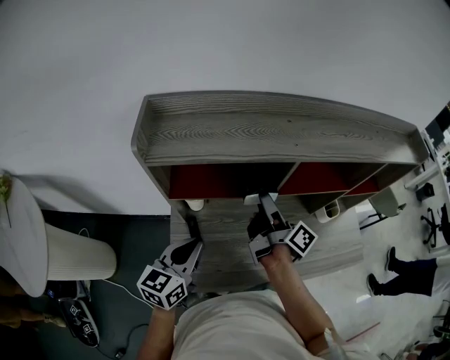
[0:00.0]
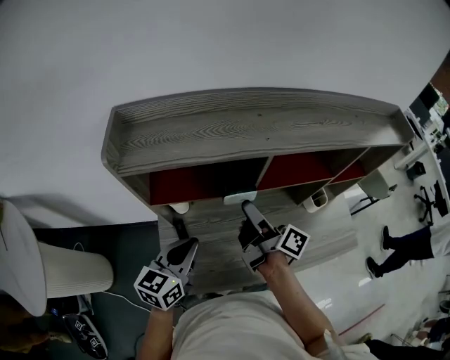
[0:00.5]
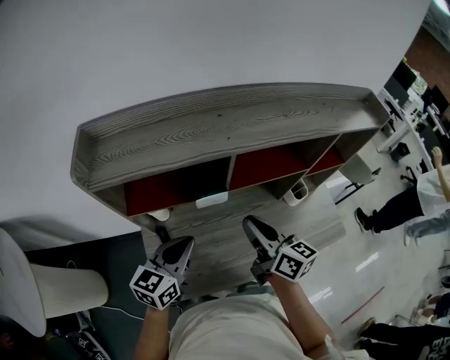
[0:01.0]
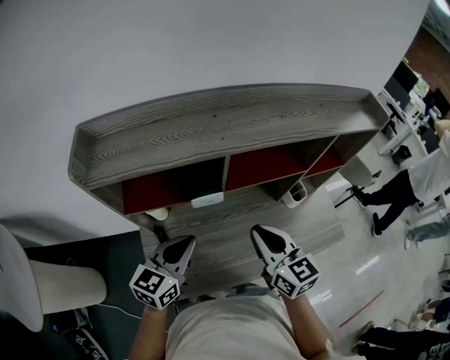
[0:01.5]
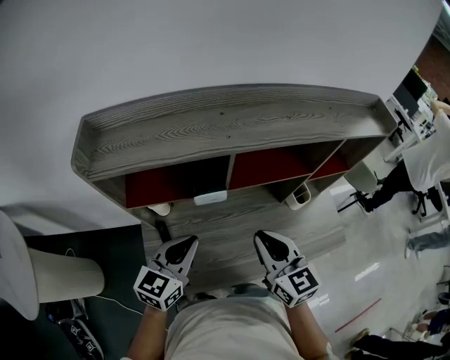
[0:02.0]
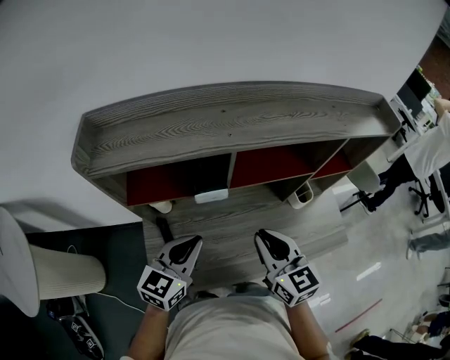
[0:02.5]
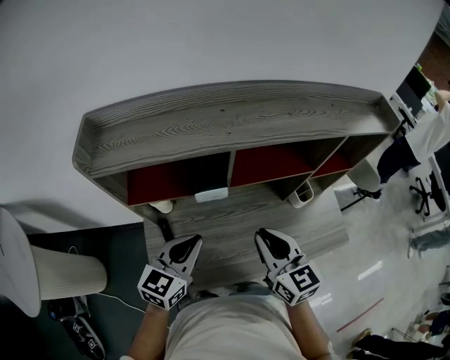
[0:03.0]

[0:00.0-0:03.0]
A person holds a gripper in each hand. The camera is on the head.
0:00.0 to 0:01.5: The left gripper goes about 10 cm to the right; the right gripper goes some 15 cm backward and to the right, twists roughly 70 degrees counterclockwise, seen from behind, and closes.
0:01.5 to 0:03.0: The grippers stay close to where they were, moving slightly.

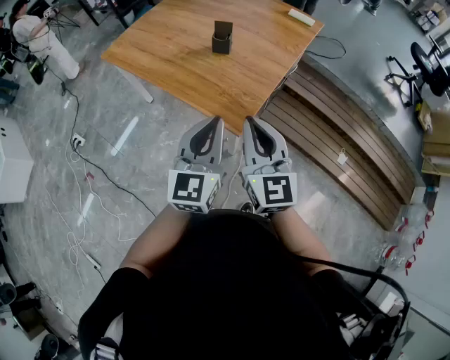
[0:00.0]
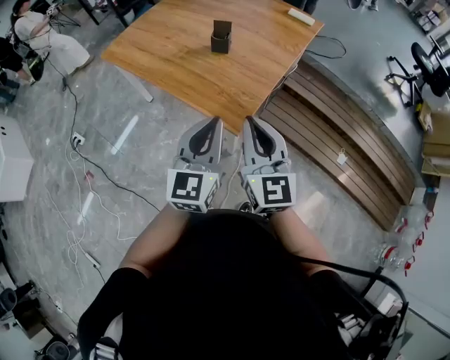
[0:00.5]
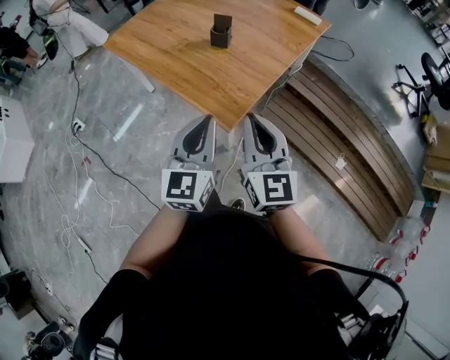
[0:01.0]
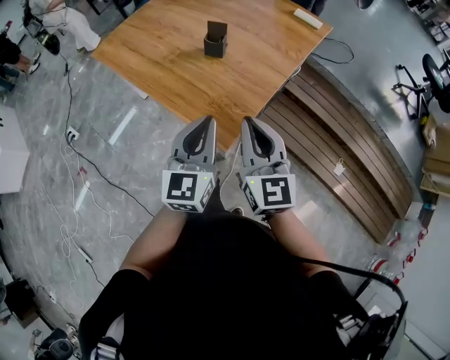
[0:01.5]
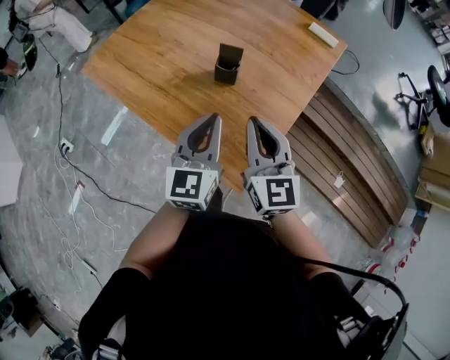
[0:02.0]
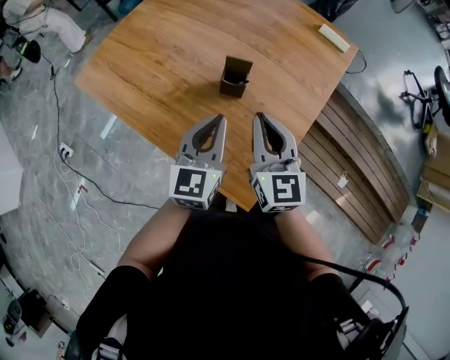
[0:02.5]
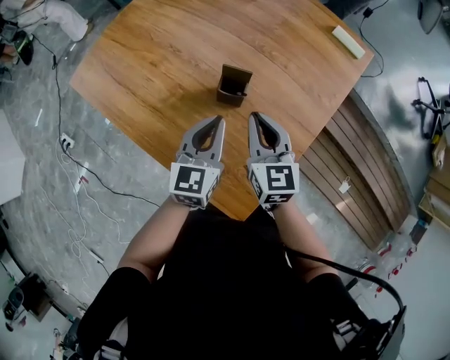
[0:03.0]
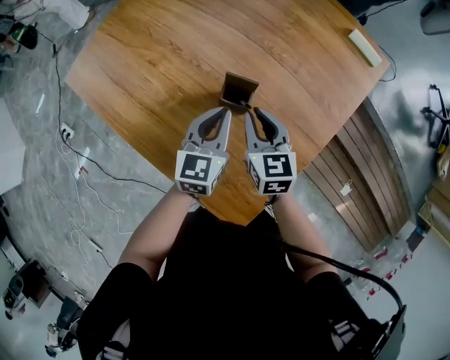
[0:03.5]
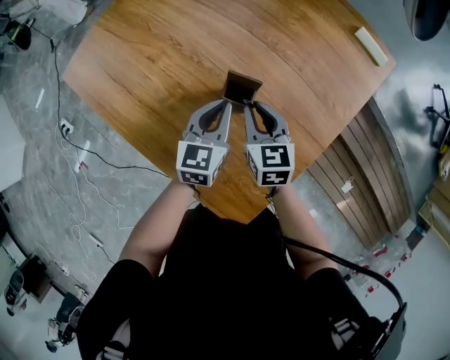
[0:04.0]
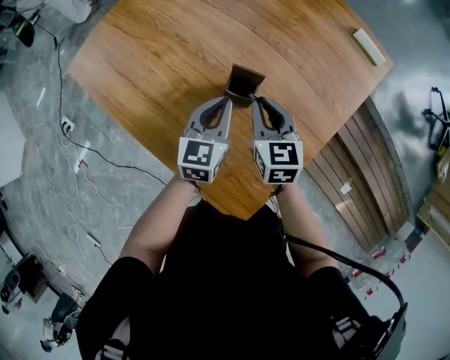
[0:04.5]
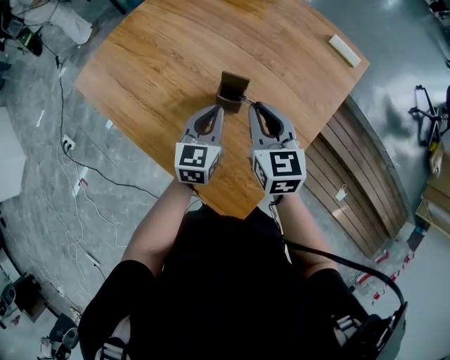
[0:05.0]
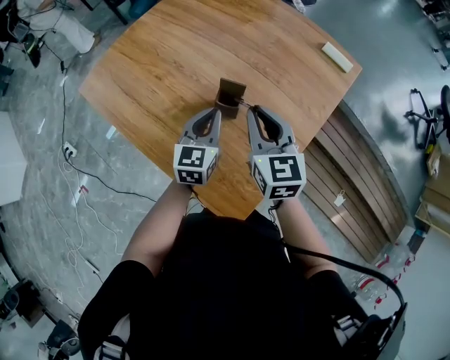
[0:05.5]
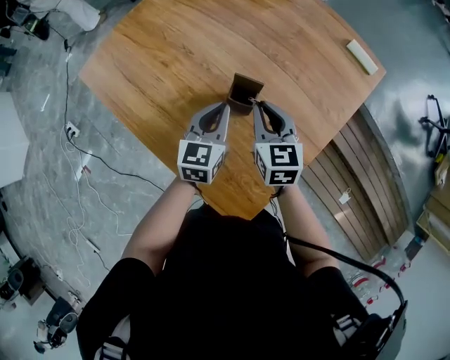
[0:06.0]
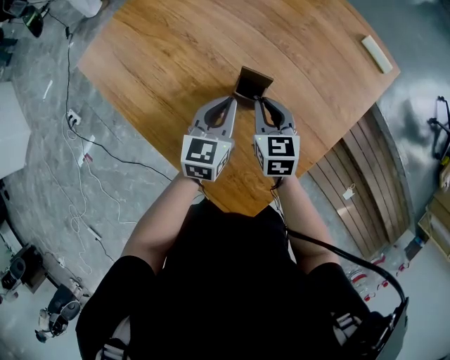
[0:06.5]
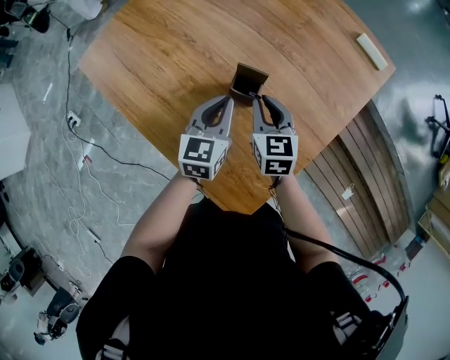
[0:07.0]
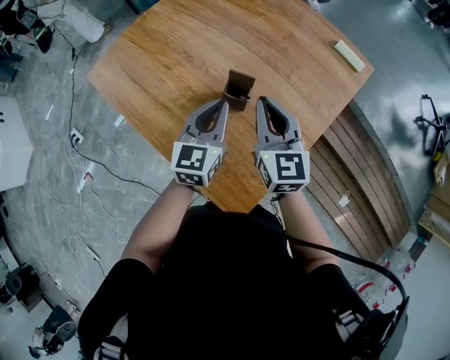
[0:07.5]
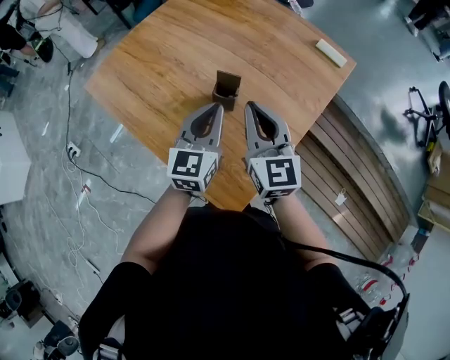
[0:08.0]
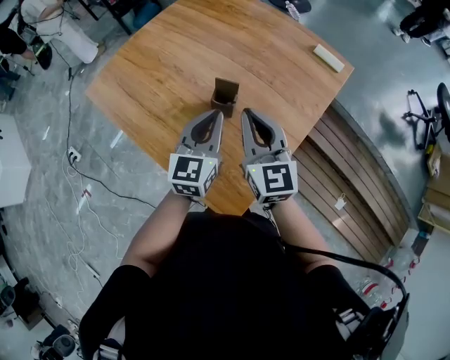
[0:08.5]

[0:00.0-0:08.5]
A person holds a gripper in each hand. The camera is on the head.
0:00.0 to 0:02.0: Both grippers travel together forward, about 30 cm.
0:02.0 to 0:04.0: The grippers both shift forward and downward by about 35 cm. The right gripper rotates approximately 30 degrees.
0:04.0 to 0:06.5: The right gripper goes upward and returns, about 20 cm each way, while the left gripper goes upward and returns, about 10 cm each way.
0:06.5 to 0:08.5: The two grippers go roughly 20 cm upward and backward. The right gripper swivels about 30 degrees.

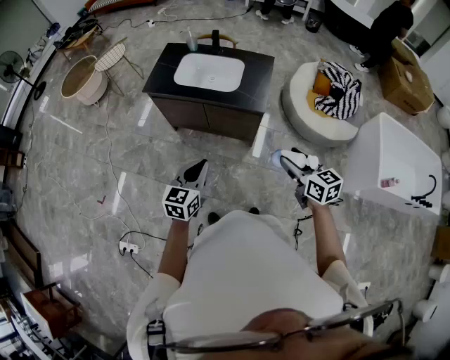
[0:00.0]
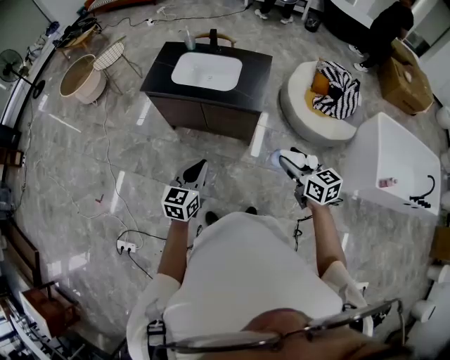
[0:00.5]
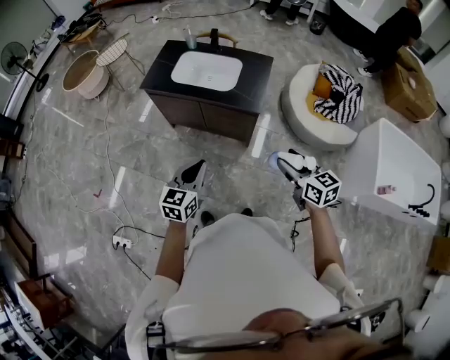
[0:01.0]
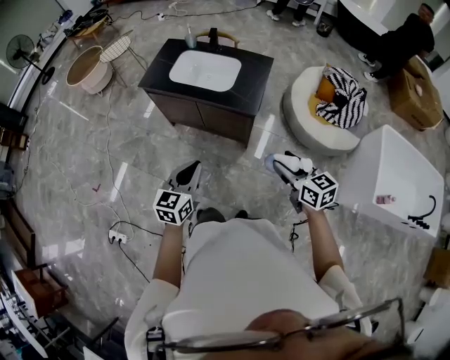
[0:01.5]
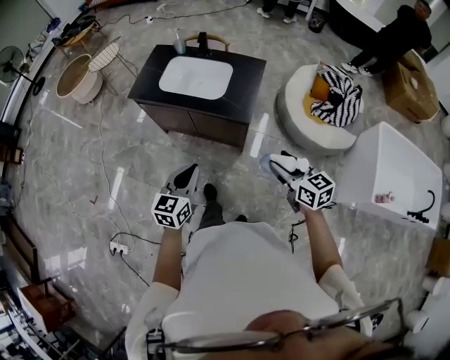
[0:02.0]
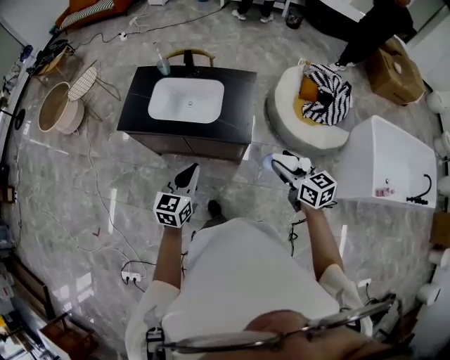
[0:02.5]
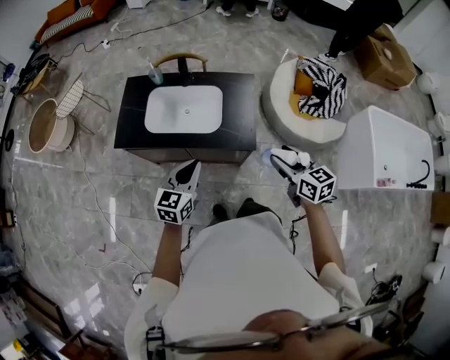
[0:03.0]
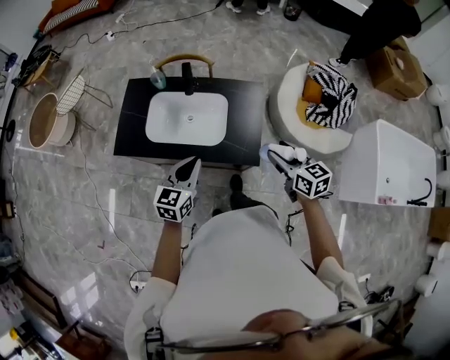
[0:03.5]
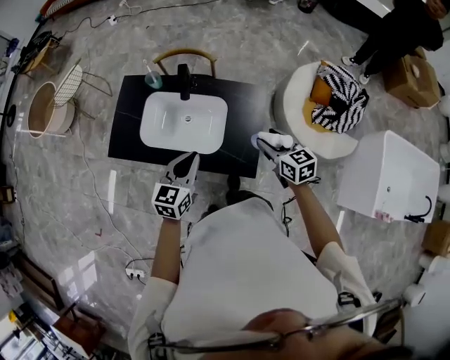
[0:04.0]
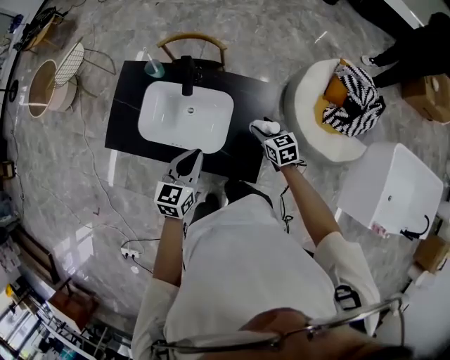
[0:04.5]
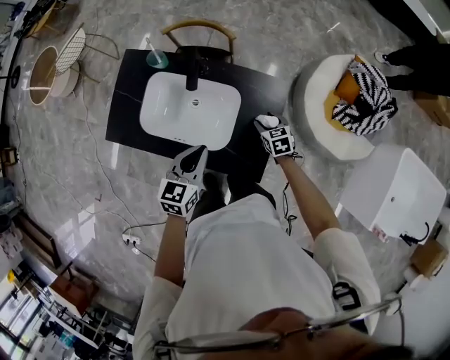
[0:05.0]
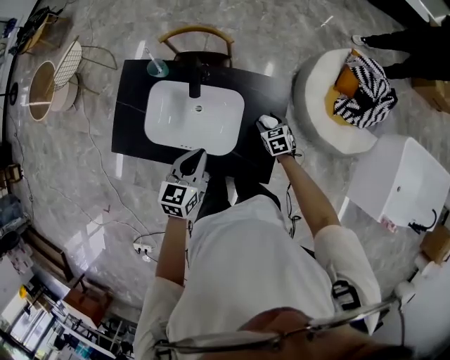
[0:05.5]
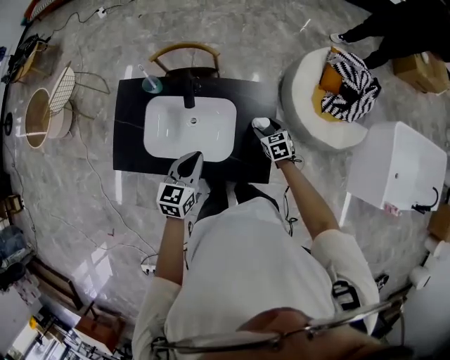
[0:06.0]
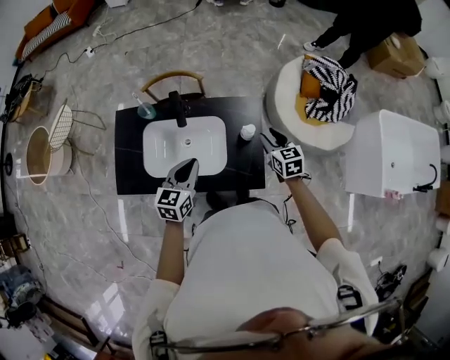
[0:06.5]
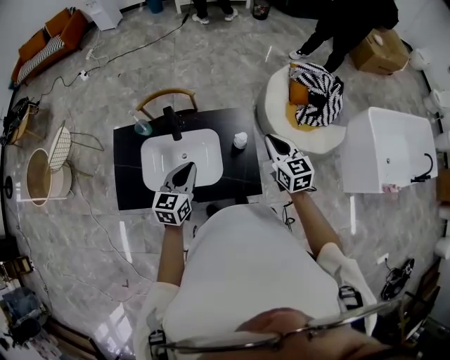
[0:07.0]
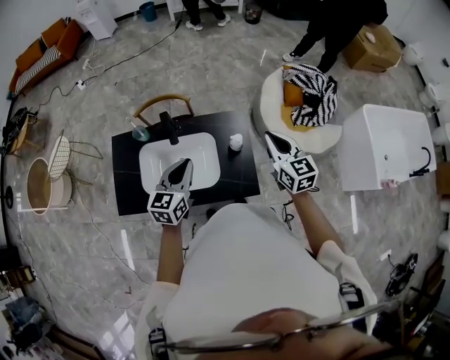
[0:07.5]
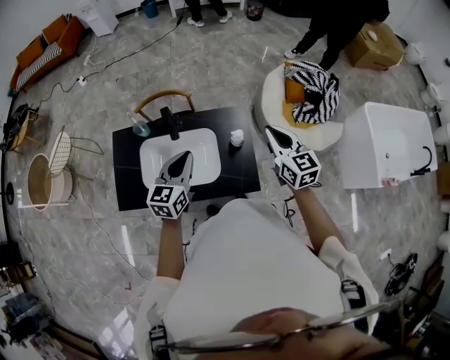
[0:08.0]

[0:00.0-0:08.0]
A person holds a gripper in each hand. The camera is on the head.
0:00.0 to 0:02.0: The right gripper heads forward and to the right, covering about 10 cm, while the left gripper shifts roughly 10 cm to the right and forward.
0:02.0 to 0:04.0: Both grippers are carried forward, about 40 cm.
0:04.0 to 0:06.0: The right gripper travels downward and forward by approximately 25 cm, and turns by some 20 degrees; the left gripper heads forward and downward, covering roughly 10 cm.
0:06.0 to 0:08.0: The right gripper moves upward, approximately 35 cm, tilts its fingers roughly 40 degrees upward, and closes up; the left gripper goes some 10 cm upward.

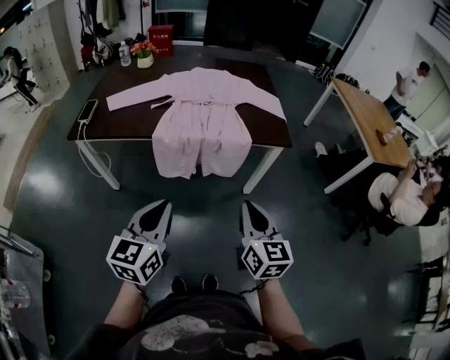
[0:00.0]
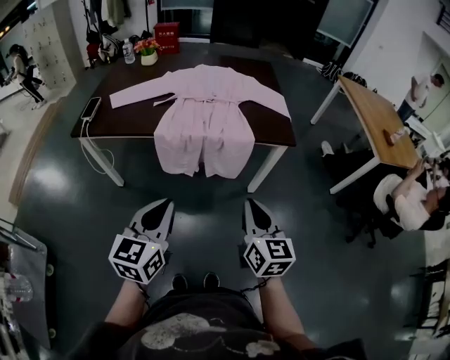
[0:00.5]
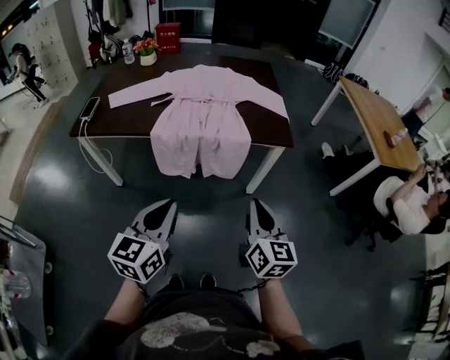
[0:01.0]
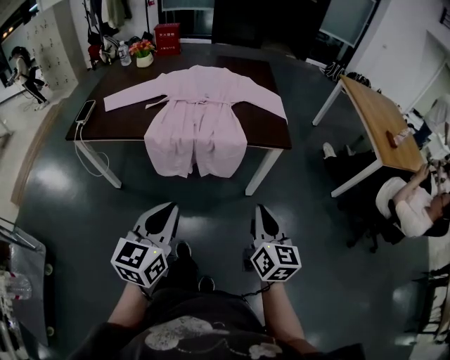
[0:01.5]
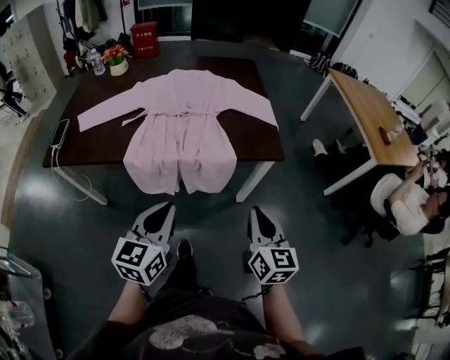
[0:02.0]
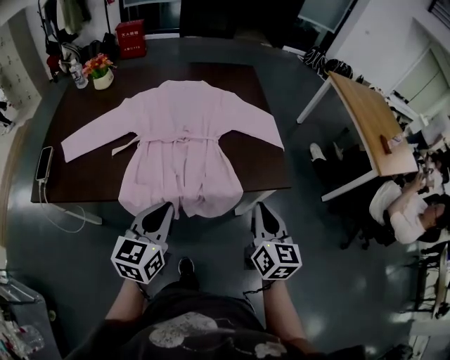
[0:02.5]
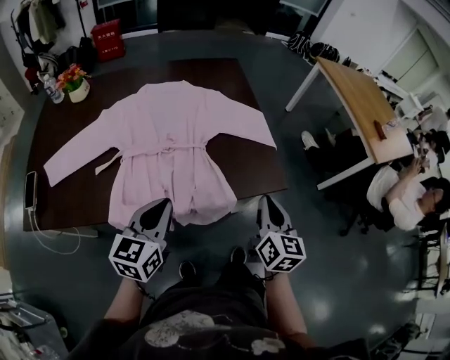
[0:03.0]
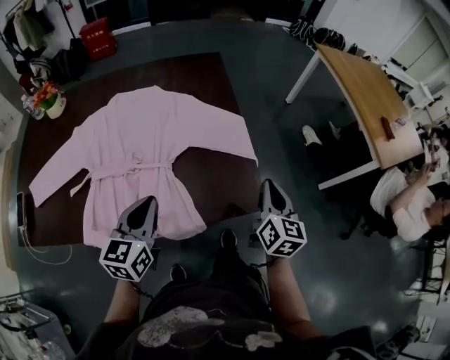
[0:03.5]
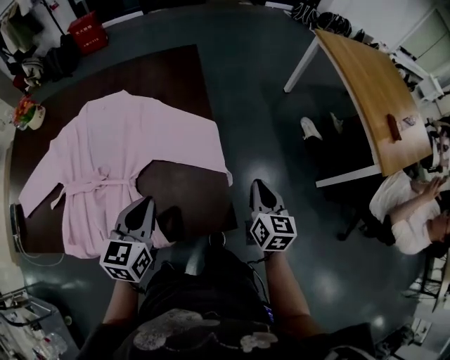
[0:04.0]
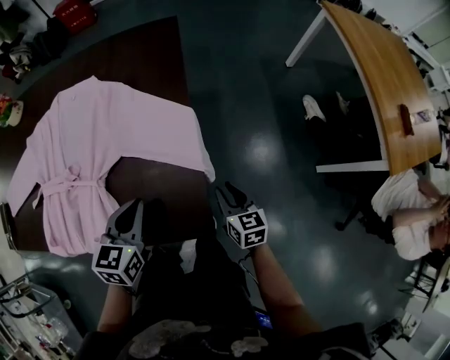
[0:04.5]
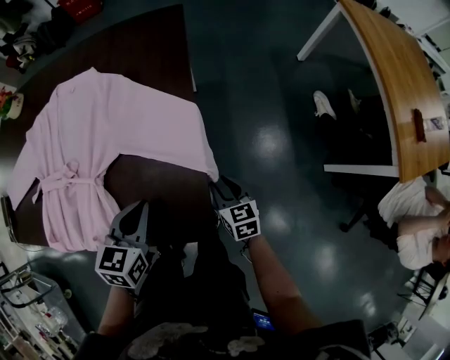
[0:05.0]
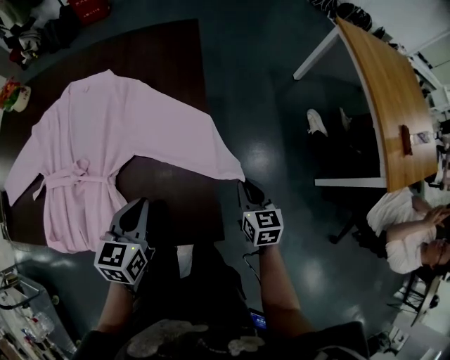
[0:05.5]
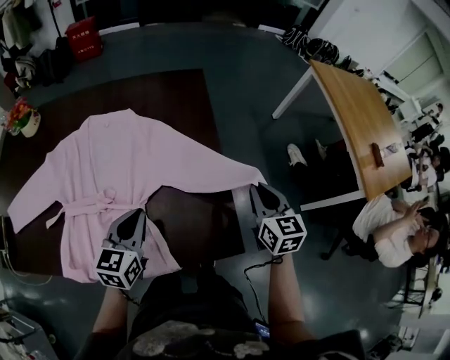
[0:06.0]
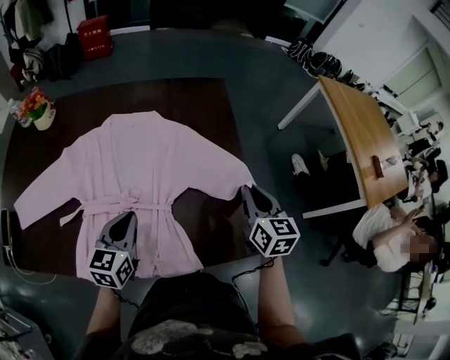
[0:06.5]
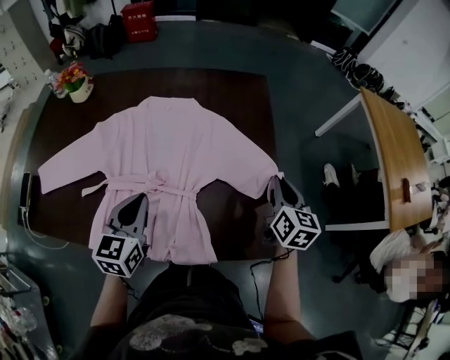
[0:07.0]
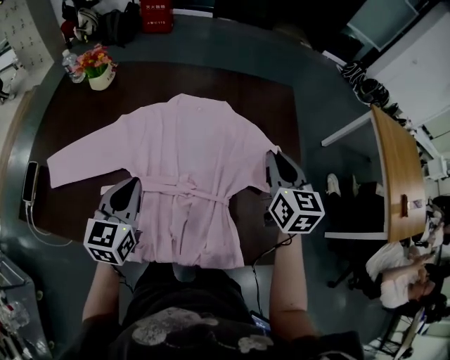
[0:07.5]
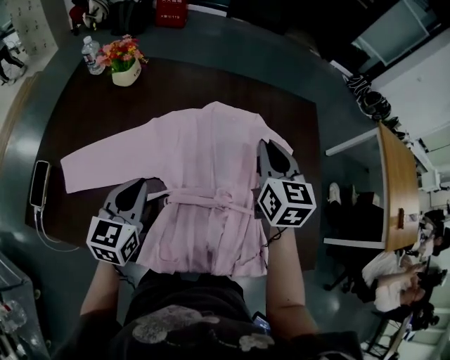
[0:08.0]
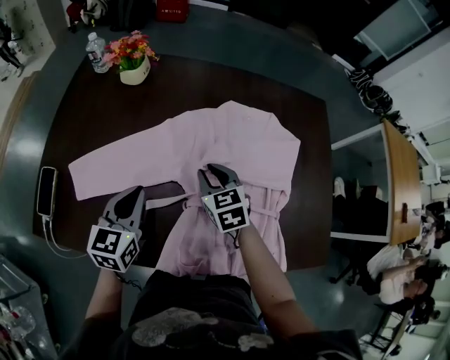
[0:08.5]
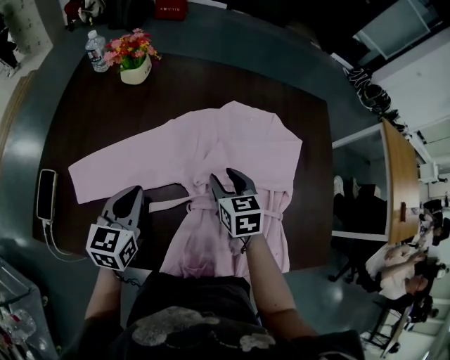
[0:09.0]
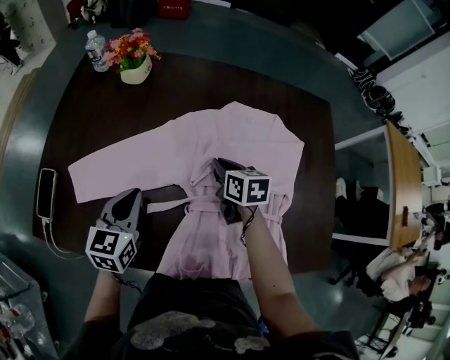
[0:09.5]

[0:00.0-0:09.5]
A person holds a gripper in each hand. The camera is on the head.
0:00.0 to 0:02.0: Both grippers move forward and to the right, roughly 20 cm.
0:02.0 to 0:04.0: Both grippers are carried forward, roughly 50 cm.
0:04.0 to 0:05.5: Both grippers move downward, roughly 10 cm. The right gripper changes its angle by about 20 degrees.
0:05.5 to 0:07.5: The right gripper travels to the left and upward by some 40 cm. The left gripper shifts roughly 40 cm to the left.
0:07.5 to 0:09.5: The right gripper moves to the left and downward, about 35 cm, rotates roughly 30 degrees, and opens, then closes once more. The left gripper is displaced to the left by roughly 20 cm.
